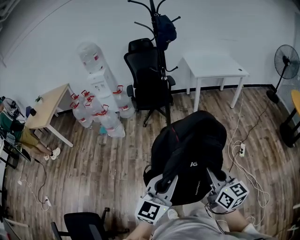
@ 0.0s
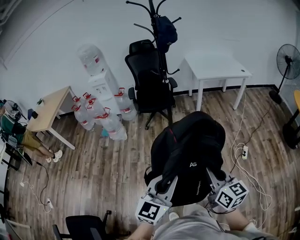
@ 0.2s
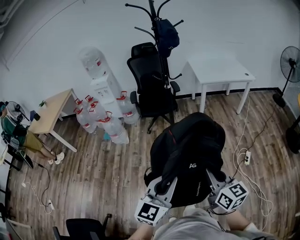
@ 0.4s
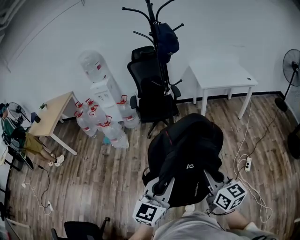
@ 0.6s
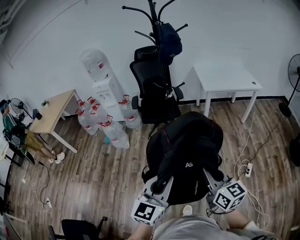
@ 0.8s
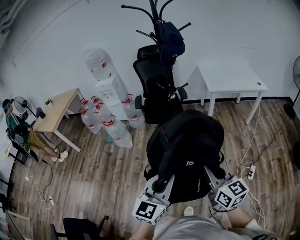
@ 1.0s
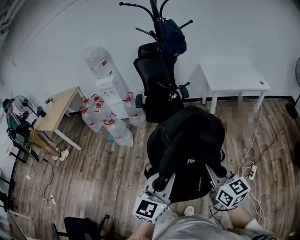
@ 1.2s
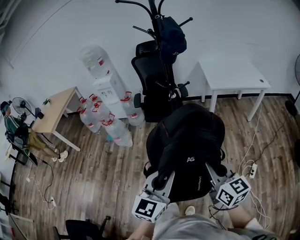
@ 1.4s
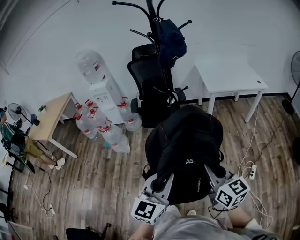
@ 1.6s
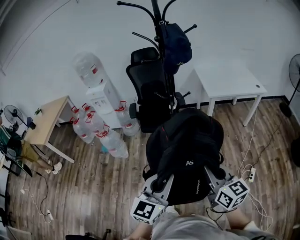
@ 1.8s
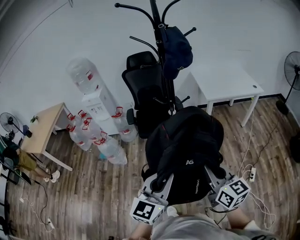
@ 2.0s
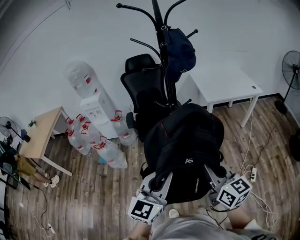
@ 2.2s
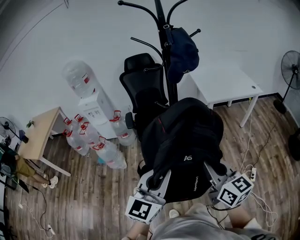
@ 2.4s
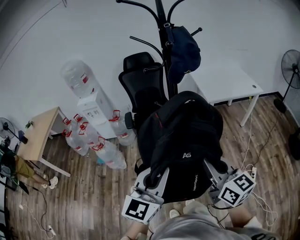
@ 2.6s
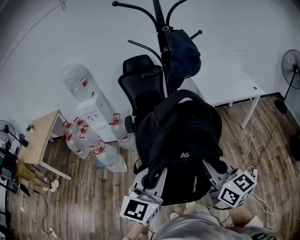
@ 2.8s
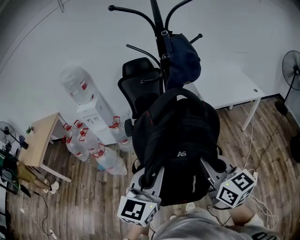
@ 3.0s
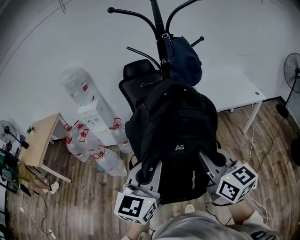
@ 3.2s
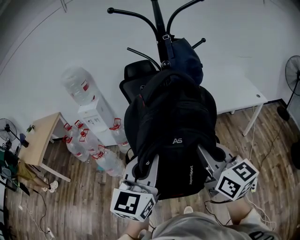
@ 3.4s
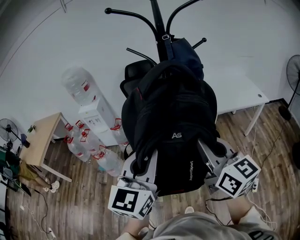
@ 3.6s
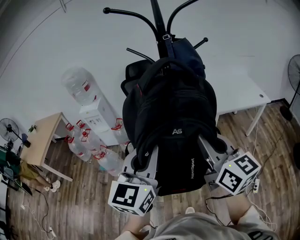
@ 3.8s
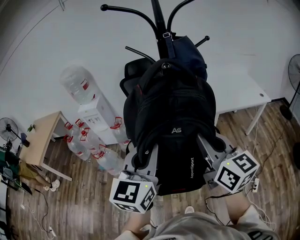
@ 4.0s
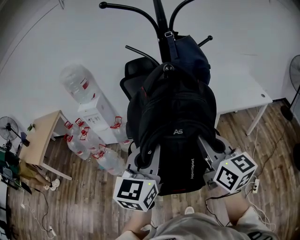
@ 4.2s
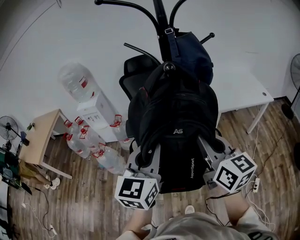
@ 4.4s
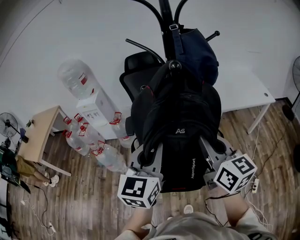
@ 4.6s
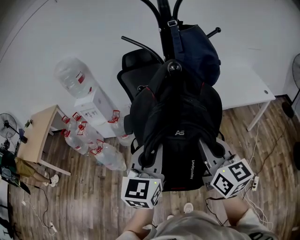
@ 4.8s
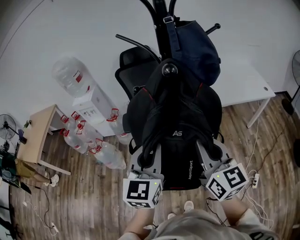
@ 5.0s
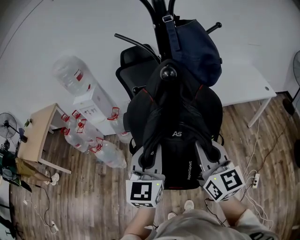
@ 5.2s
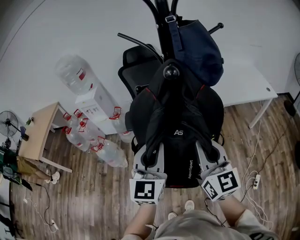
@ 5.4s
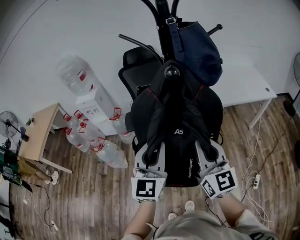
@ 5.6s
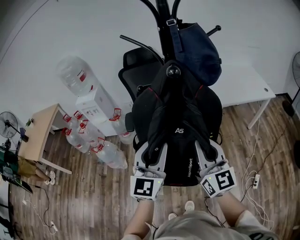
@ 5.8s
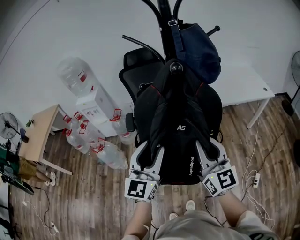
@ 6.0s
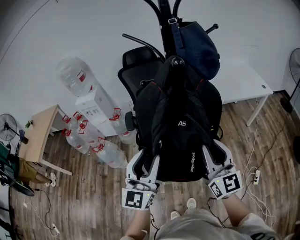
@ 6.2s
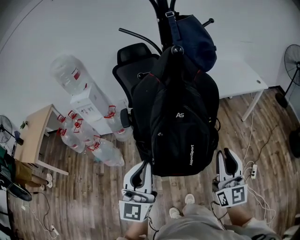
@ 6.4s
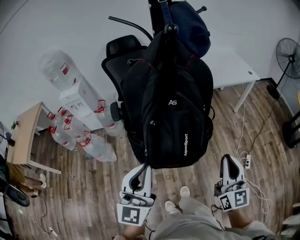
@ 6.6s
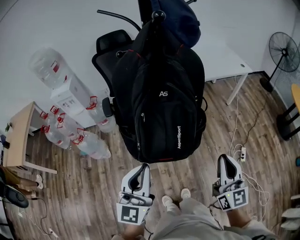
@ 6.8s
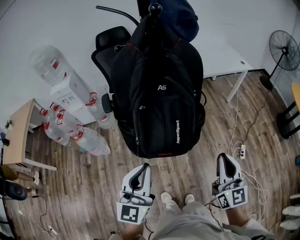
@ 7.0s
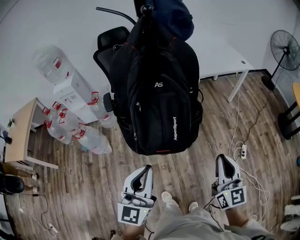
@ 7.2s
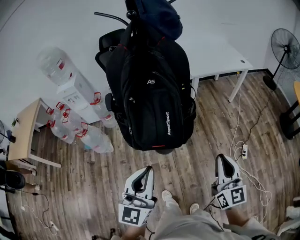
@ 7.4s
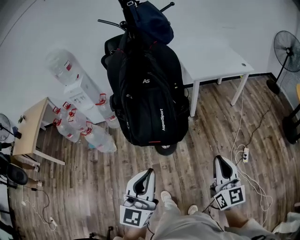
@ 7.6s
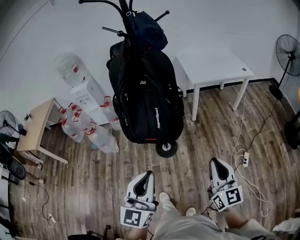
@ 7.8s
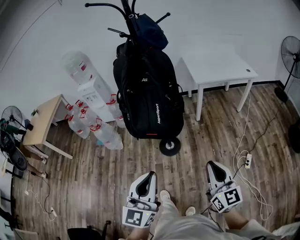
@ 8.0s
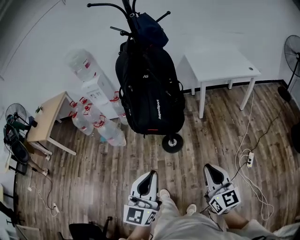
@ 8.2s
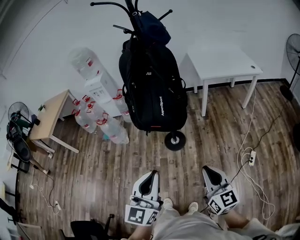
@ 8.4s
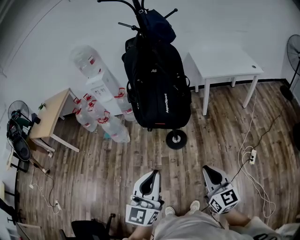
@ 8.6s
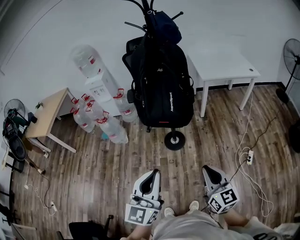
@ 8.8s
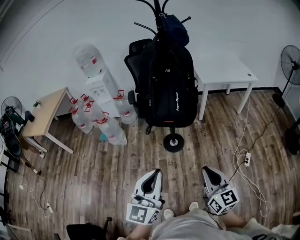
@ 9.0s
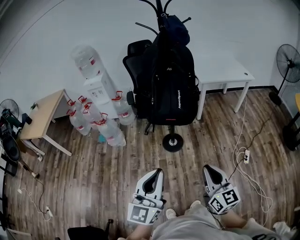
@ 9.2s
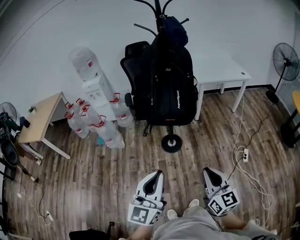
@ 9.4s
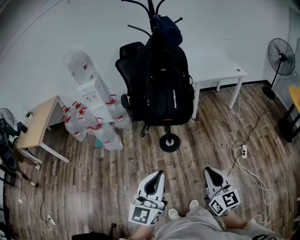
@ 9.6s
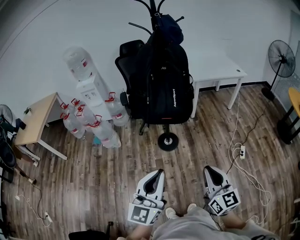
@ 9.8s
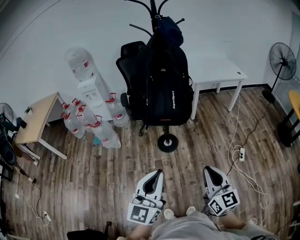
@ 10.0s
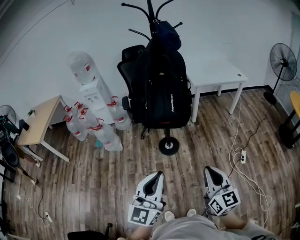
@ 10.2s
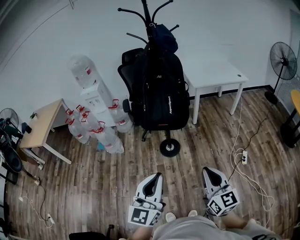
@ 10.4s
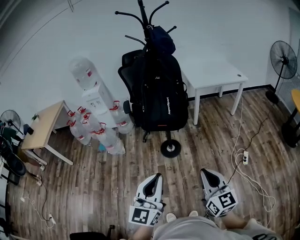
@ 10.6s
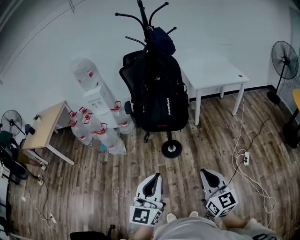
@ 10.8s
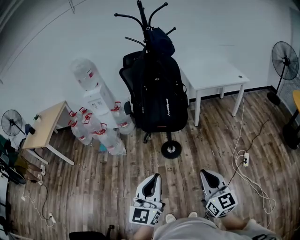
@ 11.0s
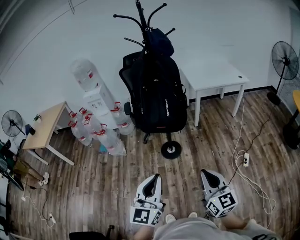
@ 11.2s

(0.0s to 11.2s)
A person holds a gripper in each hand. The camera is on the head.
0.0s - 1.6s: Both grippers travel together forward, about 30 cm.
1.6s - 3.2s: Both grippers travel together forward, upward and to the left, roughly 25 cm.
3.2s - 4.8s: Both grippers move forward, some 15 cm.
4.8s - 6.4s: The left gripper travels backward and to the left by approximately 15 cm, and opens and closes again, while the right gripper travels backward, downward and to the right by about 15 cm, and swivels roughly 30 degrees.
6.4s - 8.0s: The grippers both shift backward and to the right by roughly 30 cm.
8.0s - 9.6s: Both grippers move to the left and backward, roughly 20 cm.
9.6s - 11.2s: The two grippers go some 5 cm to the right.

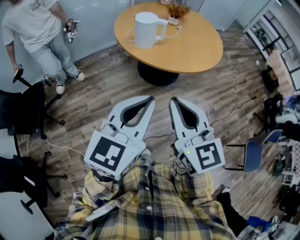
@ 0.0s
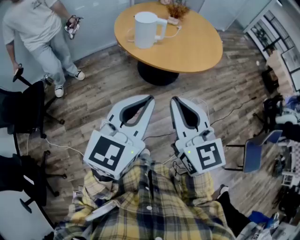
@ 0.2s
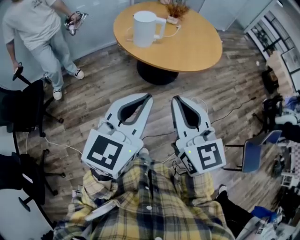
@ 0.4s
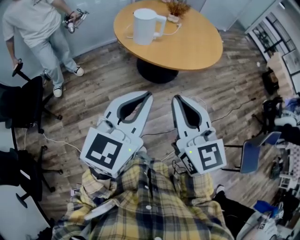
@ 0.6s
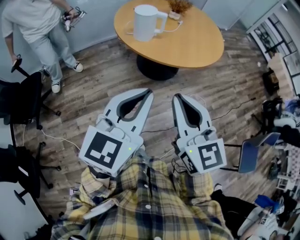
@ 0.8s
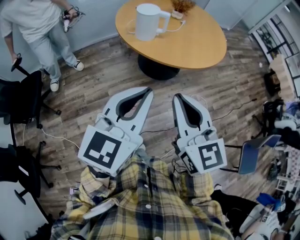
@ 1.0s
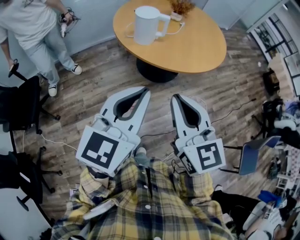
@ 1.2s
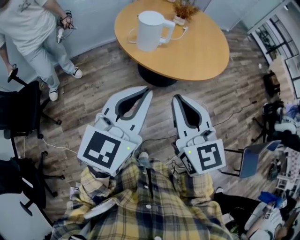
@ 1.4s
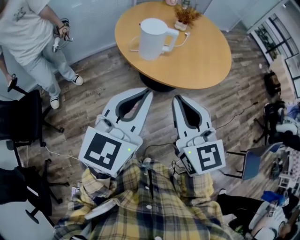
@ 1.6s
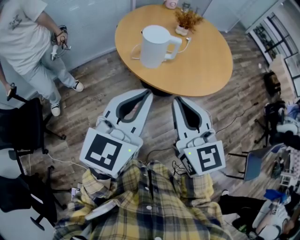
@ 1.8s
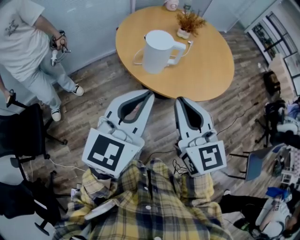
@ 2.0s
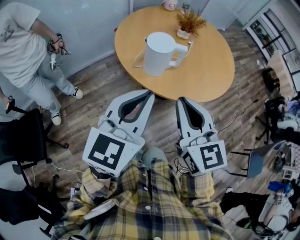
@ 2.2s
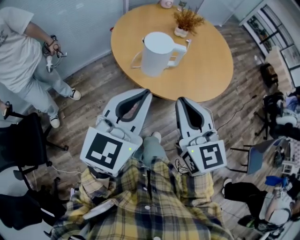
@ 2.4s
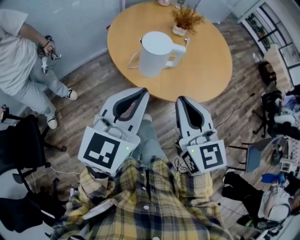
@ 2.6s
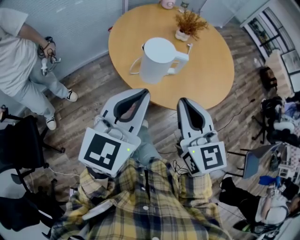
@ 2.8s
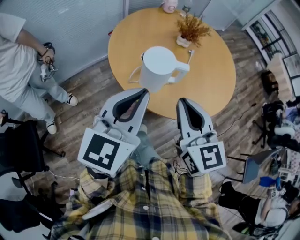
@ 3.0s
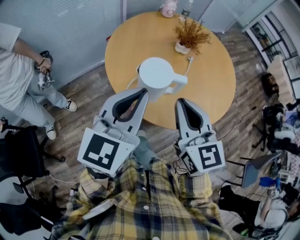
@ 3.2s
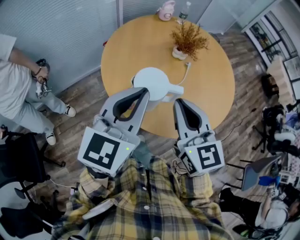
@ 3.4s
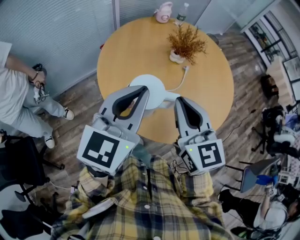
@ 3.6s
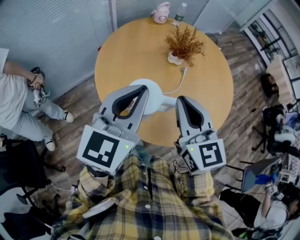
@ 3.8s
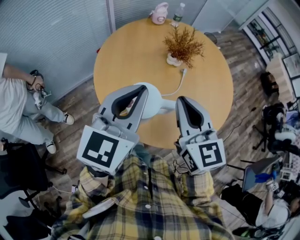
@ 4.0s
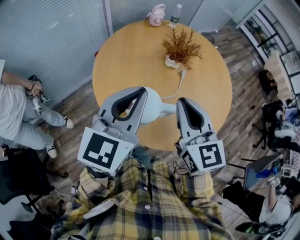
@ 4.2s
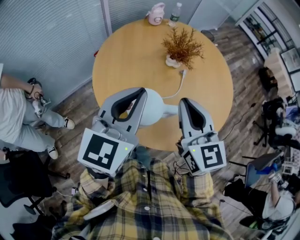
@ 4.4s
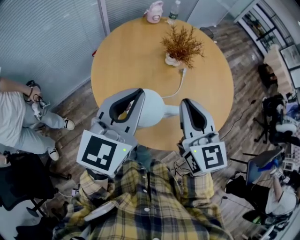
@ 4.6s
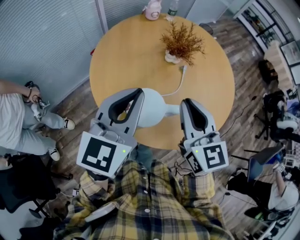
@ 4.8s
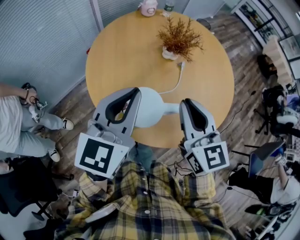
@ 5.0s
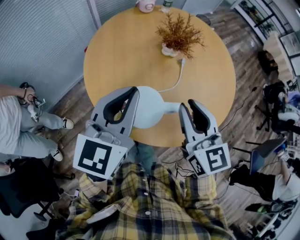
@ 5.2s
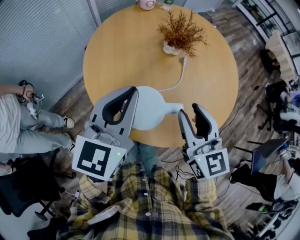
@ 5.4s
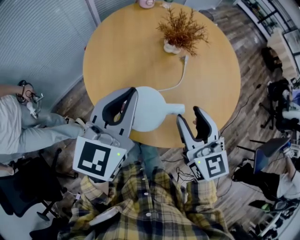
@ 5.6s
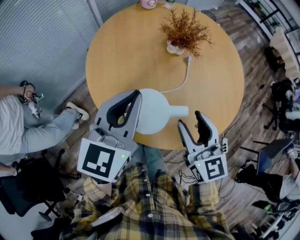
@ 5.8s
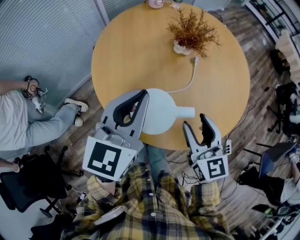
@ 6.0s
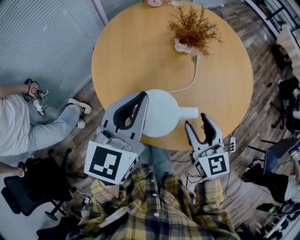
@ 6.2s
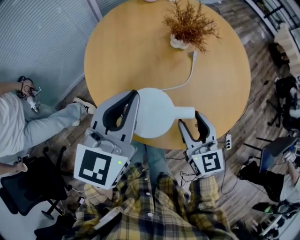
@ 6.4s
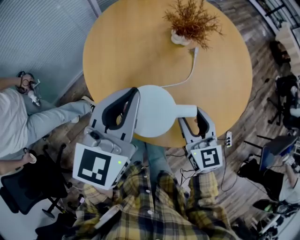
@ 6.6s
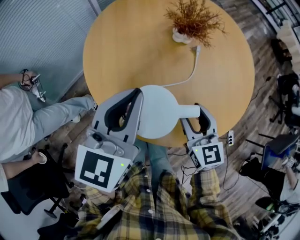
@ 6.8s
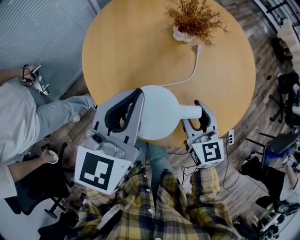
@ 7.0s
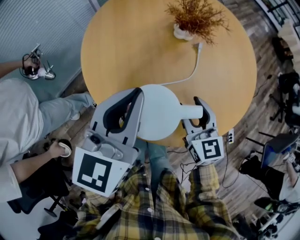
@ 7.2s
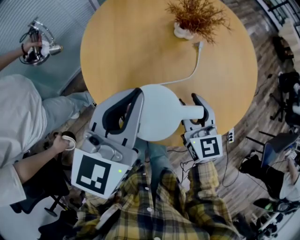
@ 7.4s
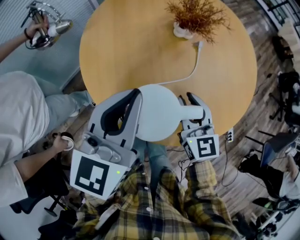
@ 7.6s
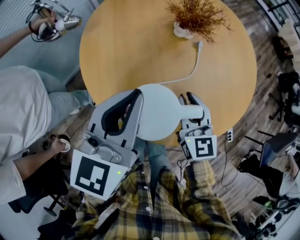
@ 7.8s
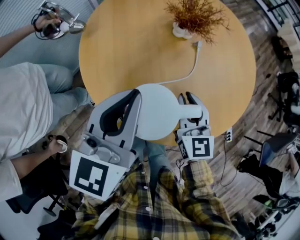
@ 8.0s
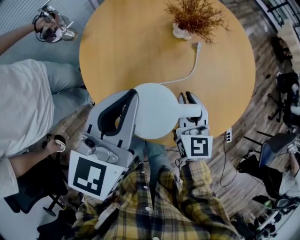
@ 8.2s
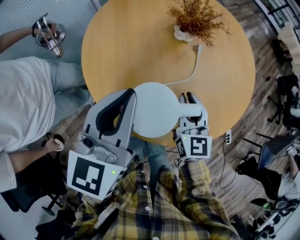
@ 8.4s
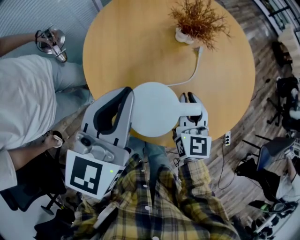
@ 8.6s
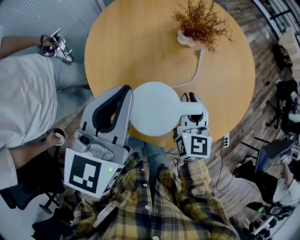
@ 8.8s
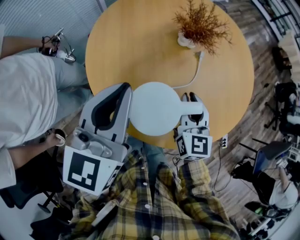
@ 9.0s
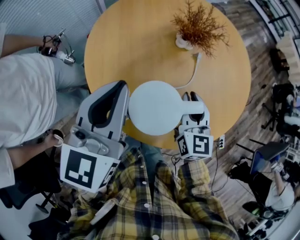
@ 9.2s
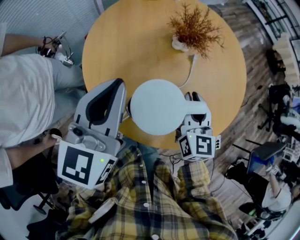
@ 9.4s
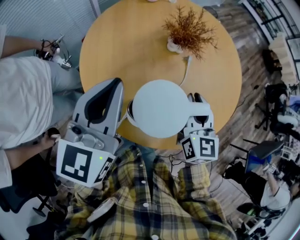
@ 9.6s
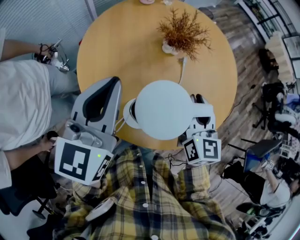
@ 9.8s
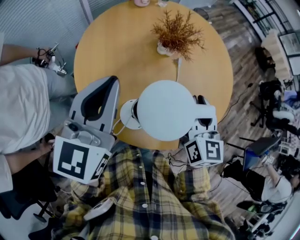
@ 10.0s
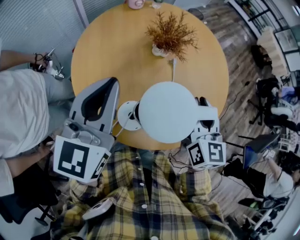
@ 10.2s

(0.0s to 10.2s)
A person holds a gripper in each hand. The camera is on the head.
0.0s - 1.4s: The grippers both shift forward by some 10 cm.
1.4s - 3.0s: The left gripper goes some 30 cm forward and to the left. The right gripper travels forward by about 25 cm.
3.0s - 4.4s: The two grippers go approximately 20 cm forward.
4.4s - 5.8s: The right gripper travels downward by some 10 cm, and opens up; the left gripper travels downward by approximately 5 cm.
5.8s - 7.2s: The right gripper is displaced downward by about 10 cm.
7.2s - 8.8s: The right gripper closes up.
8.8s - 10.2s: The right gripper shifts approximately 15 cm upward and to the right, while the left gripper shifts some 5 cm upward.

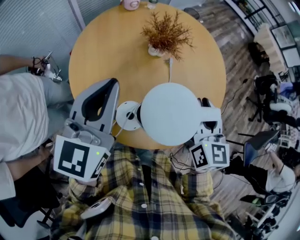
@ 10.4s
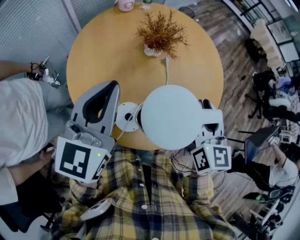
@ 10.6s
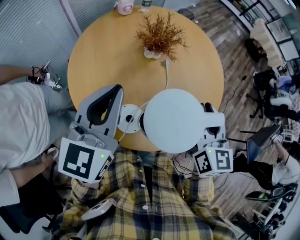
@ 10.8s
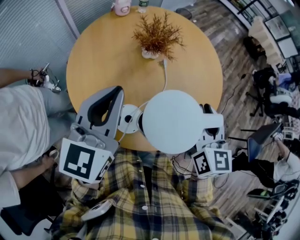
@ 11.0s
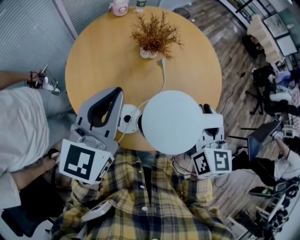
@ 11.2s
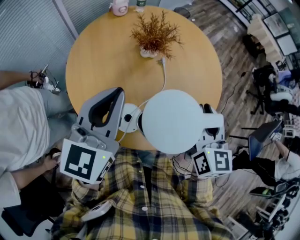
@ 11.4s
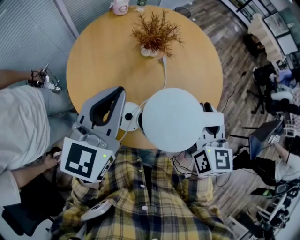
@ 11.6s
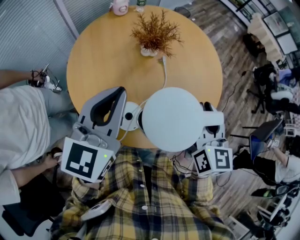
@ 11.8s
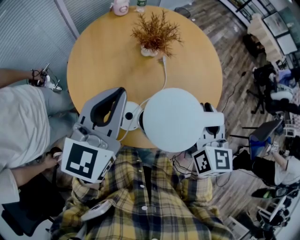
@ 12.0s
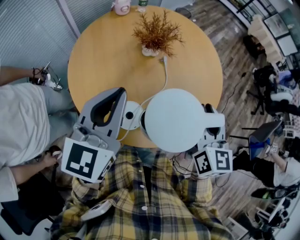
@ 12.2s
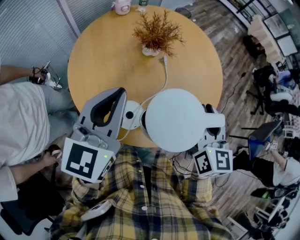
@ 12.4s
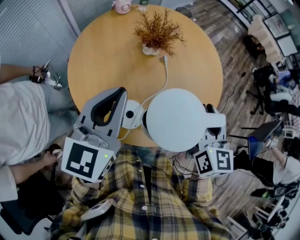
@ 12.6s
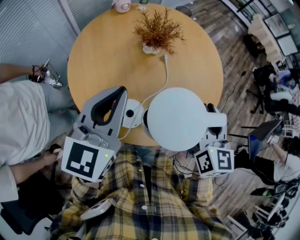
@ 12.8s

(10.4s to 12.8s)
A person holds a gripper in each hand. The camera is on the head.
10.4s - 12.8s: There are only small adjustments of the grippers.
